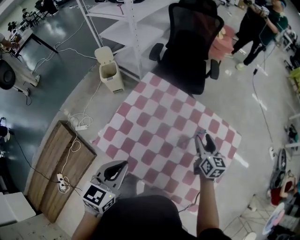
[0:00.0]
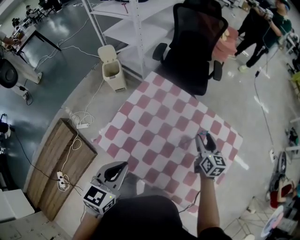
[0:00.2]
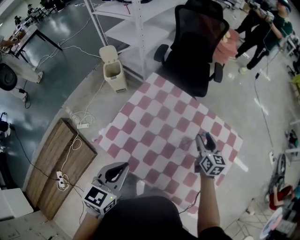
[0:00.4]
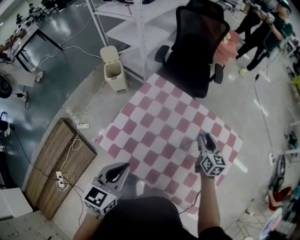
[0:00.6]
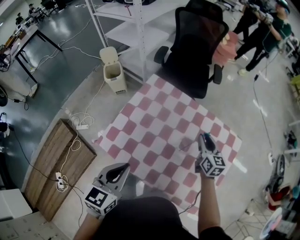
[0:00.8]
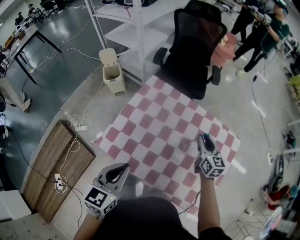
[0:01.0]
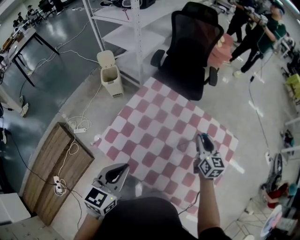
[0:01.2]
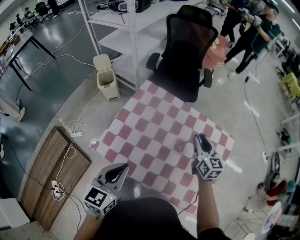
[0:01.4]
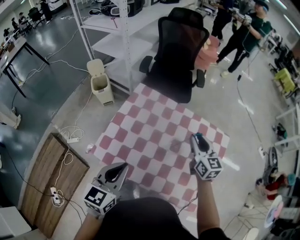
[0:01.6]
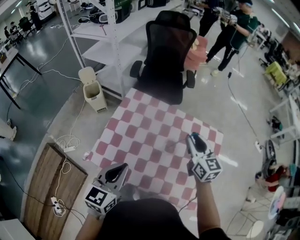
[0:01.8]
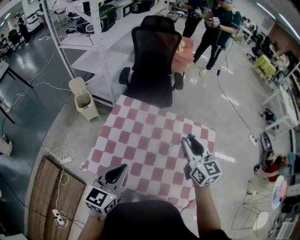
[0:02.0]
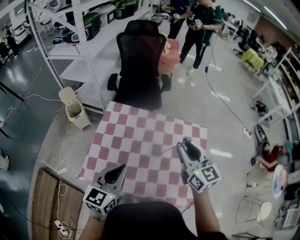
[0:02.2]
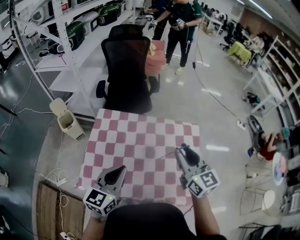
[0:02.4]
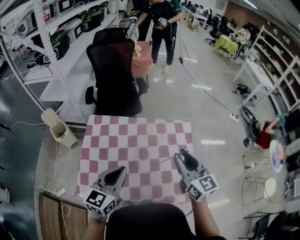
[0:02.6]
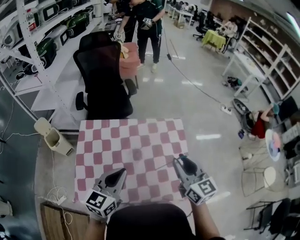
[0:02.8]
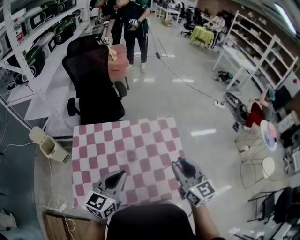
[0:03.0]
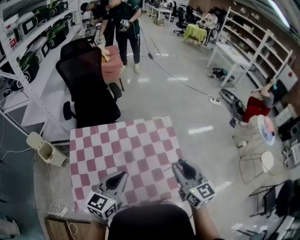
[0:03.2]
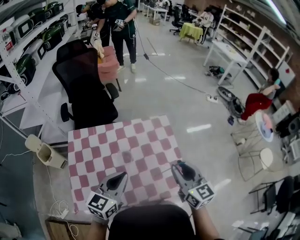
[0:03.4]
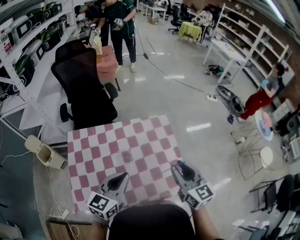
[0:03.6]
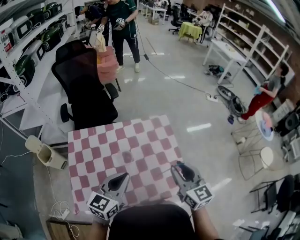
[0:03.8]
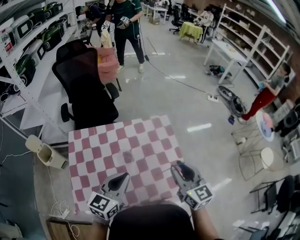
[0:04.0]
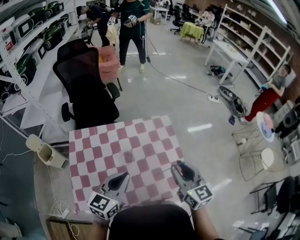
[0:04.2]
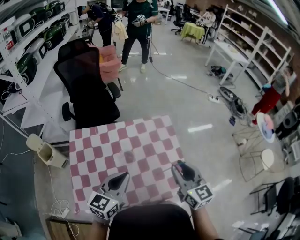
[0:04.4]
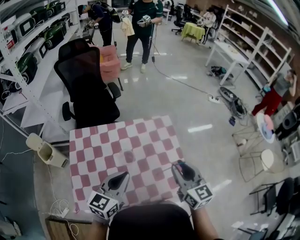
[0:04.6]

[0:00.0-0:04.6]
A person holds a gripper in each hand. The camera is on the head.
0:00.0 to 0:01.6: The right gripper shifts roughly 10 cm upward, and closes its fingers.
0:01.6 to 0:03.0: The left gripper moves about 15 cm, and turns by roughly 40 degrees, while the right gripper shifts by some 25 cm, and turns by approximately 20 degrees.
0:03.0 to 0:04.6: The grippers move only a little.

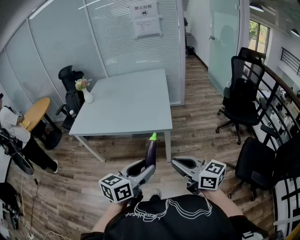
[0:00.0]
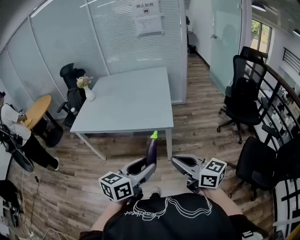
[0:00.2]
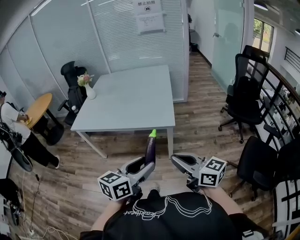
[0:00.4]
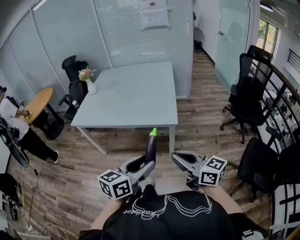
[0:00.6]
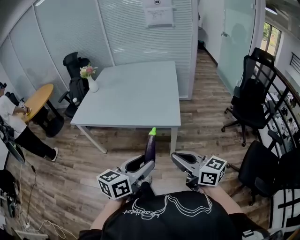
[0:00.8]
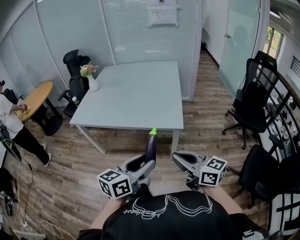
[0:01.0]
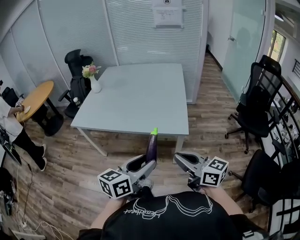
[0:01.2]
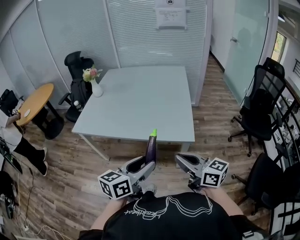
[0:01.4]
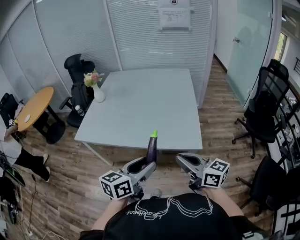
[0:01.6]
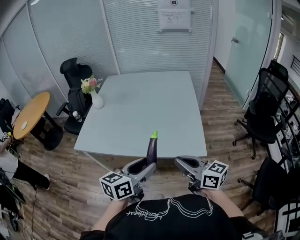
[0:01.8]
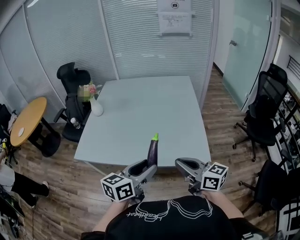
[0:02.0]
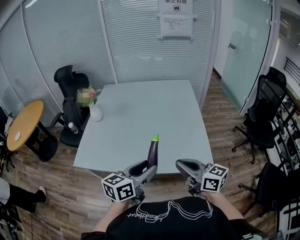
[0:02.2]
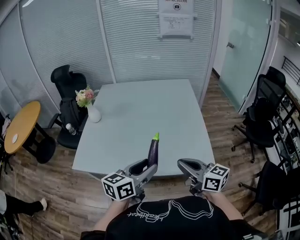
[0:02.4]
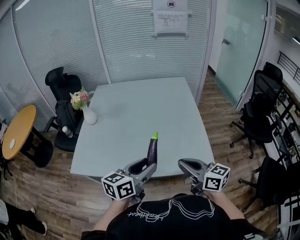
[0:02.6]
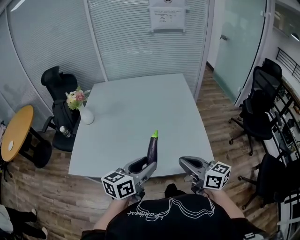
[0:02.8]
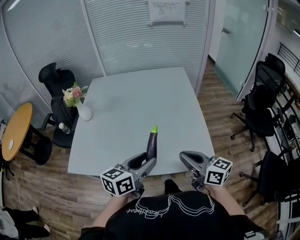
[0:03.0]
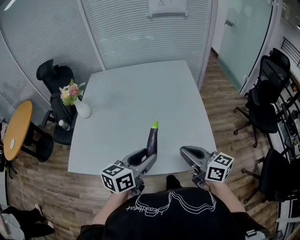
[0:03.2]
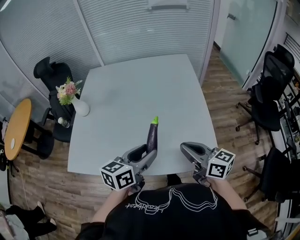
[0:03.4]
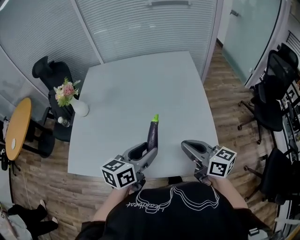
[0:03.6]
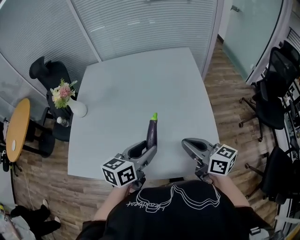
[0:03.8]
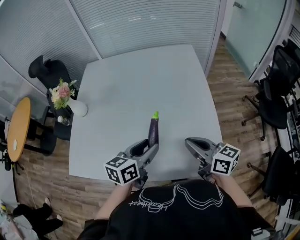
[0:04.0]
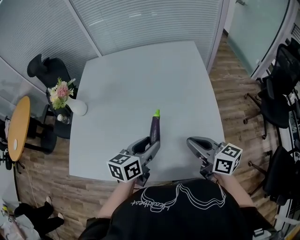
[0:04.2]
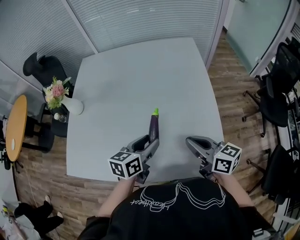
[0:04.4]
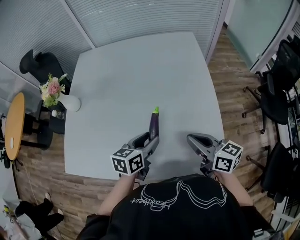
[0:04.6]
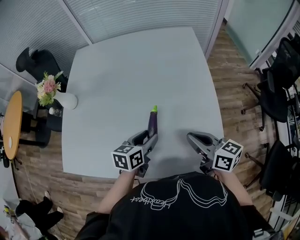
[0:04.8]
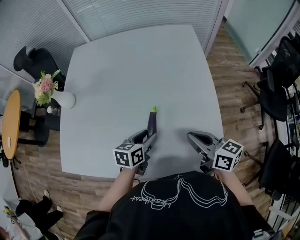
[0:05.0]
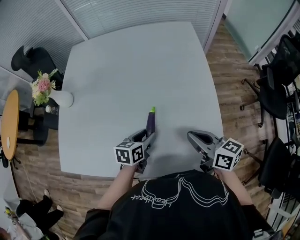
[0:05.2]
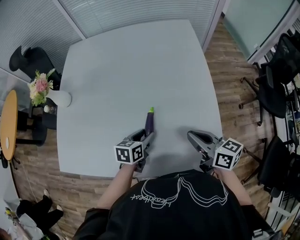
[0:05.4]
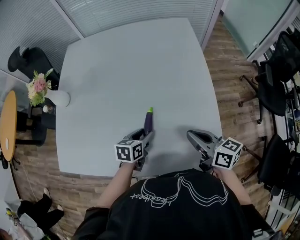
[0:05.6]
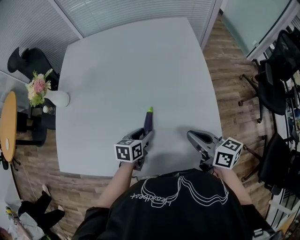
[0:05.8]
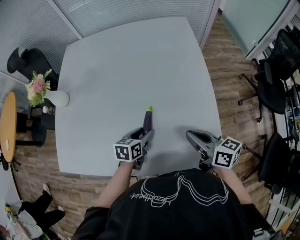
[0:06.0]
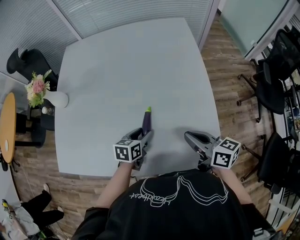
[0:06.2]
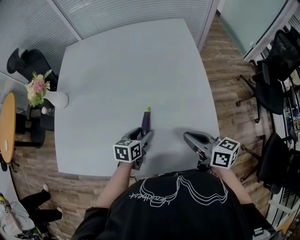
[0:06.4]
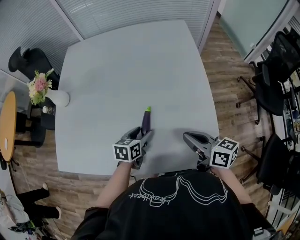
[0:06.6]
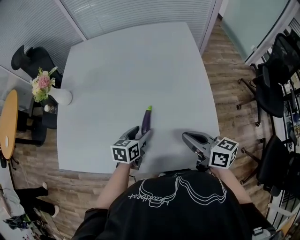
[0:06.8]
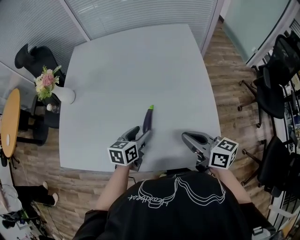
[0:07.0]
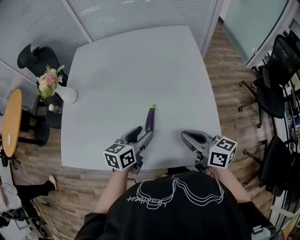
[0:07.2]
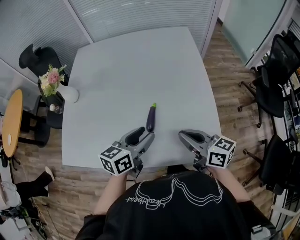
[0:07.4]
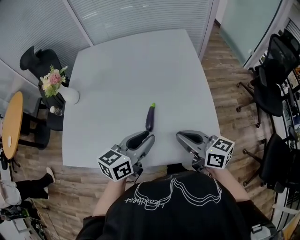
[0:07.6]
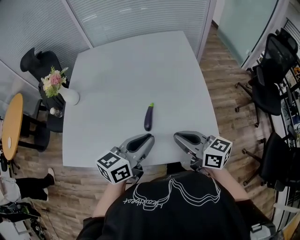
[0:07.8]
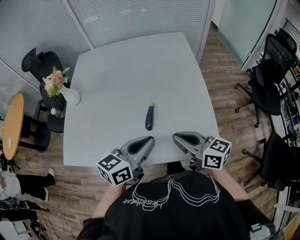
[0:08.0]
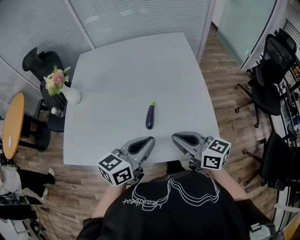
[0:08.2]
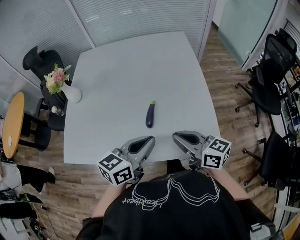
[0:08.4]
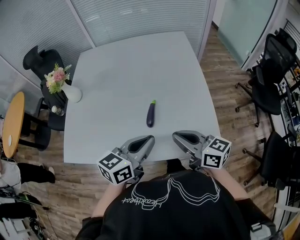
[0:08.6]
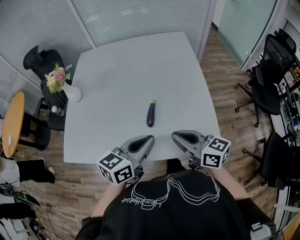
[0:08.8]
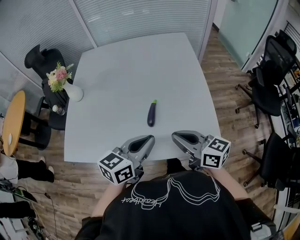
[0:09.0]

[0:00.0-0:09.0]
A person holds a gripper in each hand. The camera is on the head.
0:00.0 to 0:01.6: Both grippers move forward and to the left, roughly 30 cm.
0:01.6 to 0:03.0: Both grippers move forward, about 25 cm.
0:03.0 to 0:04.4: The left gripper travels forward and downward by some 20 cm, while the right gripper heads forward, covering about 15 cm.
0:04.4 to 0:06.0: The left gripper shifts some 15 cm downward. Meanwhile the right gripper shifts about 5 cm downward.
0:06.0 to 0:07.6: The left gripper shifts some 20 cm upward and backward, and swivels some 30 degrees. Meanwhile the right gripper shifts approximately 10 cm backward, to the left and upward.
0:07.6 to 0:09.0: The right gripper changes place by roughly 5 cm, while the left gripper shifts some 5 cm backward, and closes.

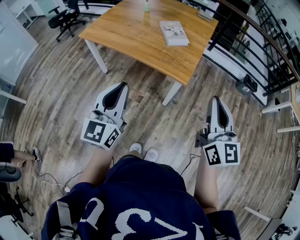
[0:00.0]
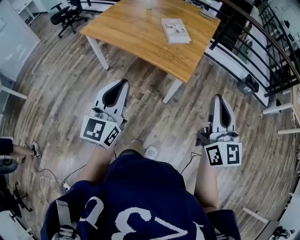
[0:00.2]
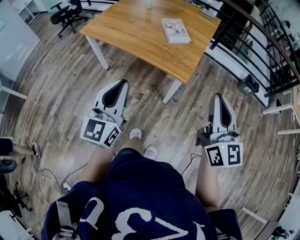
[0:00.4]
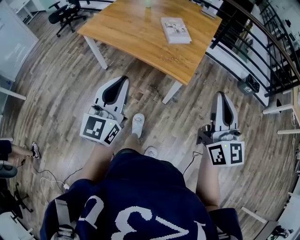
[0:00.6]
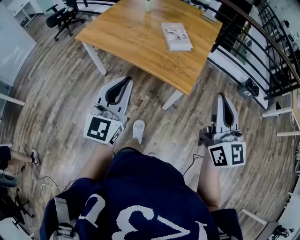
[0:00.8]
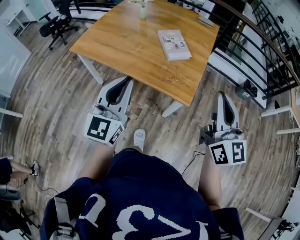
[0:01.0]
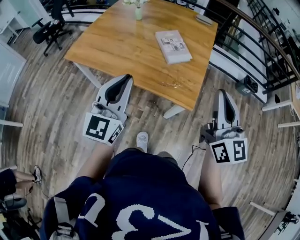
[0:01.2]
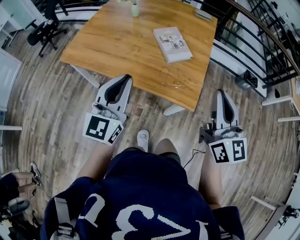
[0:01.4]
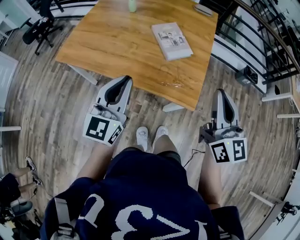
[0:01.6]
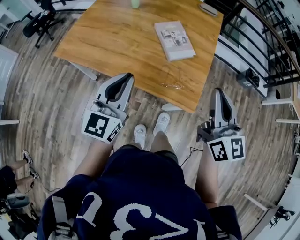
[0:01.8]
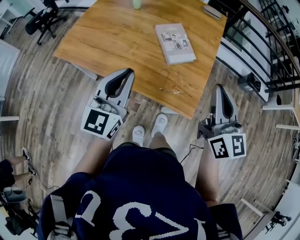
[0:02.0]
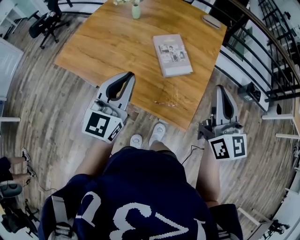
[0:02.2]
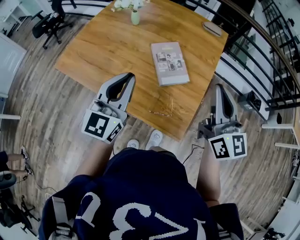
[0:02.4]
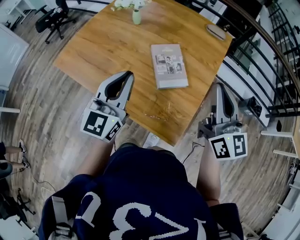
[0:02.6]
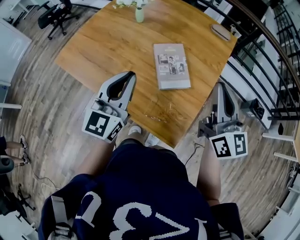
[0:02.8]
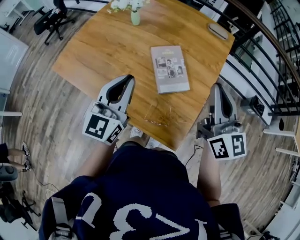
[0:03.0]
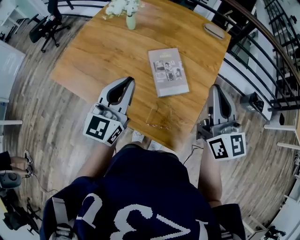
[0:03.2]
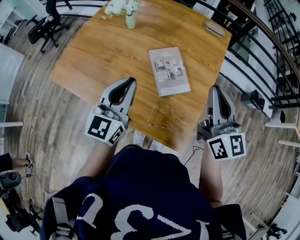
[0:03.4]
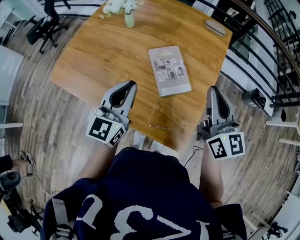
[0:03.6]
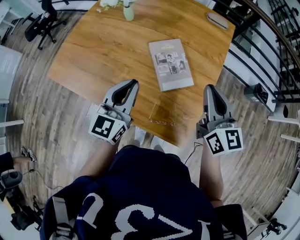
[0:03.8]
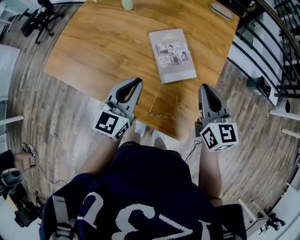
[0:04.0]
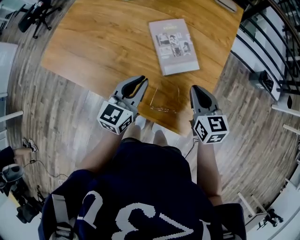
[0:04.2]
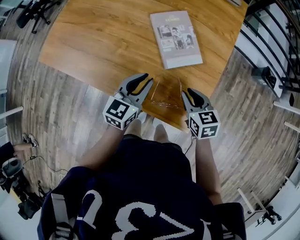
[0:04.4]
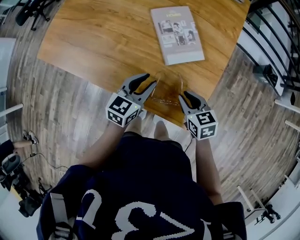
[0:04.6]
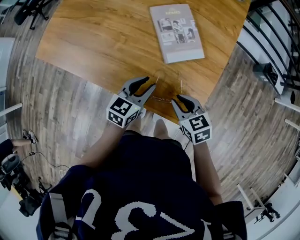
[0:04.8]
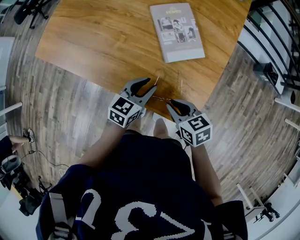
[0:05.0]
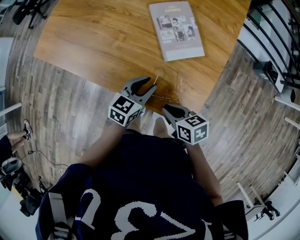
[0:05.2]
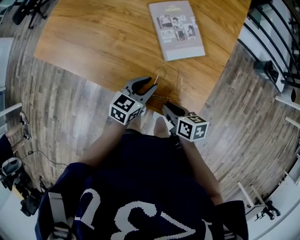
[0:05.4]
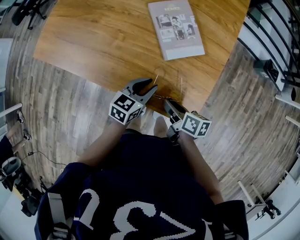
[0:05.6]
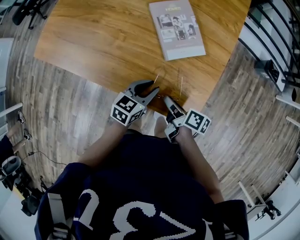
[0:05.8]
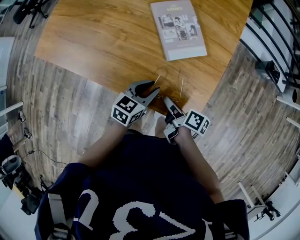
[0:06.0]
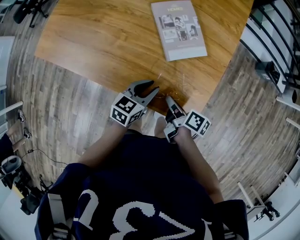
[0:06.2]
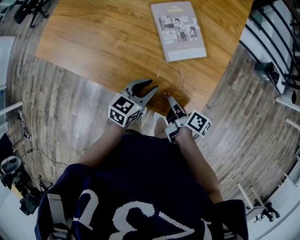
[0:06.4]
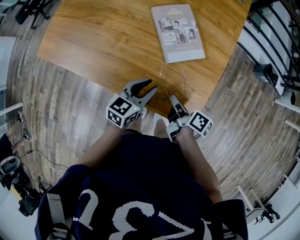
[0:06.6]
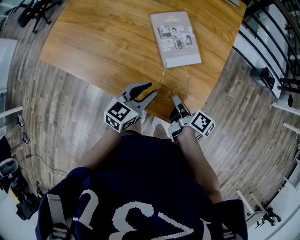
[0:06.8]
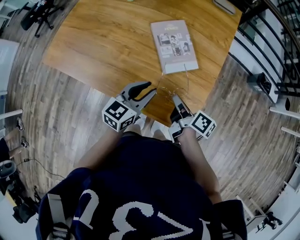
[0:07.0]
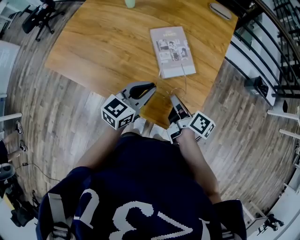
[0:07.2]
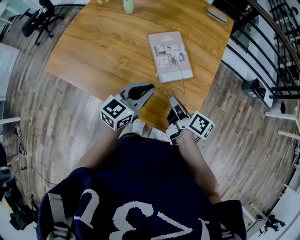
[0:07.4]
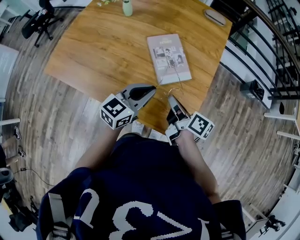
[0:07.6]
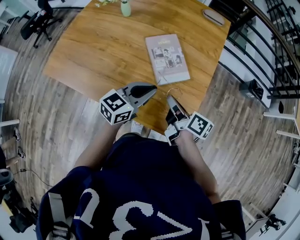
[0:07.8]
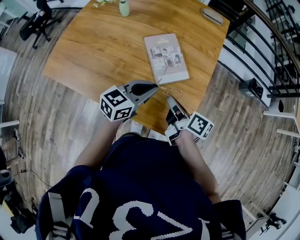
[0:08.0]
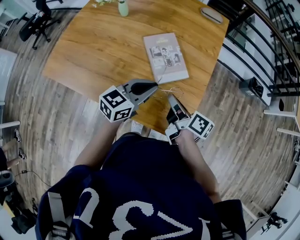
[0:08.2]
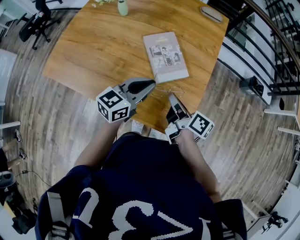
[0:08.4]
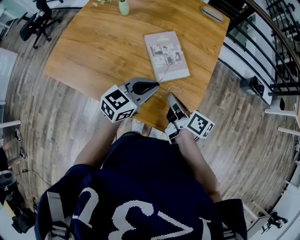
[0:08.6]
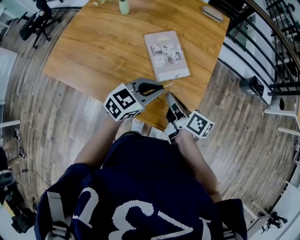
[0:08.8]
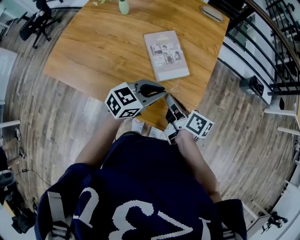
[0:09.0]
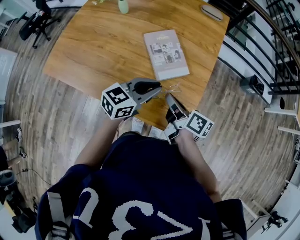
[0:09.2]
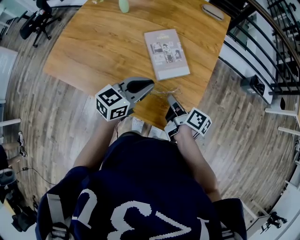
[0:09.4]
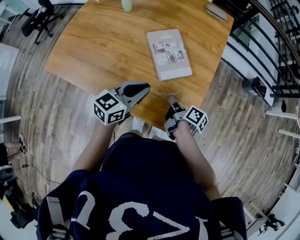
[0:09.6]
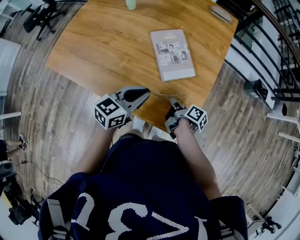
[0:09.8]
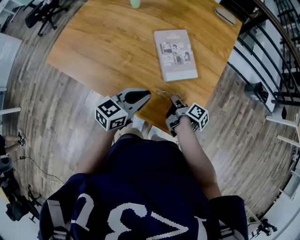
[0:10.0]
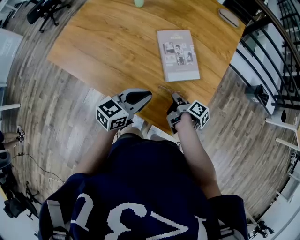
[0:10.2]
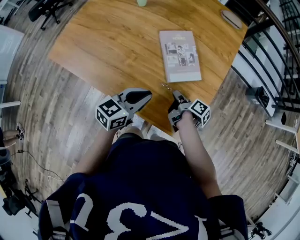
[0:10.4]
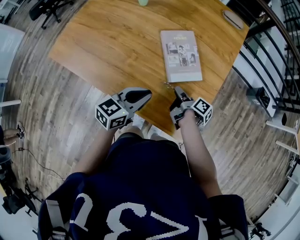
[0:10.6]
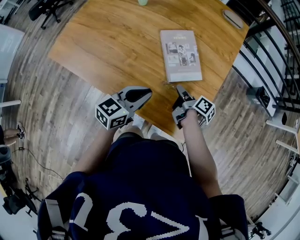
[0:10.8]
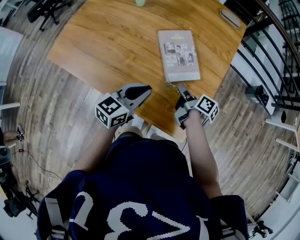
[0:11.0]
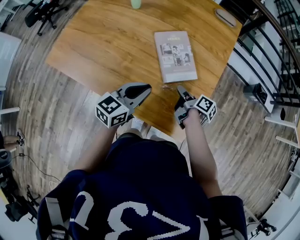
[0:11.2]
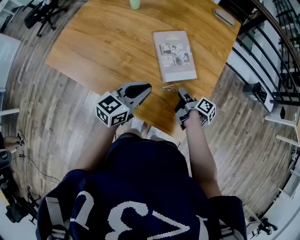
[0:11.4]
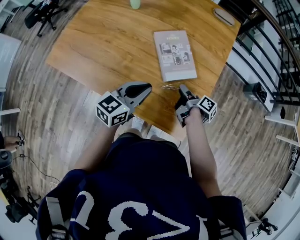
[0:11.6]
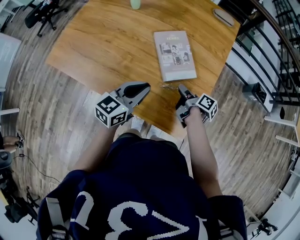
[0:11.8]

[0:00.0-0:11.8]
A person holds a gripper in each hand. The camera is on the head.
0:00.0 to 0:01.4: The two grippers go some 25 cm forward.
0:01.4 to 0:03.0: Both grippers travel together forward, some 25 cm.
0:03.0 to 0:04.4: The right gripper shifts about 30 cm downward, and tilts its fingers roughly 50 degrees downward, while the left gripper moves downward, some 20 cm, and rotates roughly 30 degrees.
0:04.4 to 0:06.0: The right gripper is displaced backward, to the left and downward by about 10 cm, and rotates around the line of its fingers by approximately 70 degrees, clockwise from behind. The left gripper travels downward and backward by about 10 cm.
0:06.0 to 0:07.4: The right gripper is displaced upward and forward by about 15 cm, turns by some 20 degrees, and closes up, while the left gripper heads upward, covering about 15 cm, rotates some 20 degrees, and closes up.
0:07.4 to 0:08.8: The left gripper travels to the right by roughly 5 cm, and turns by some 20 degrees.
0:08.8 to 0:10.4: The left gripper heads to the left, covering about 5 cm, and swivels approximately 20 degrees. The right gripper shifts some 15 cm downward, and swivels about 30 degrees.
0:10.4 to 0:11.8: The right gripper opens.
